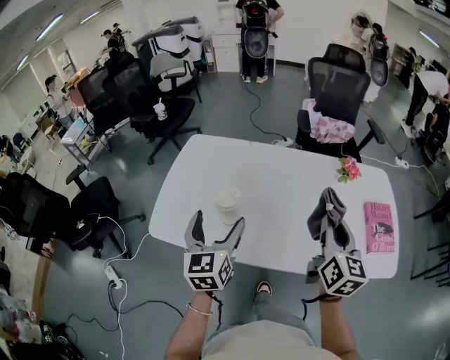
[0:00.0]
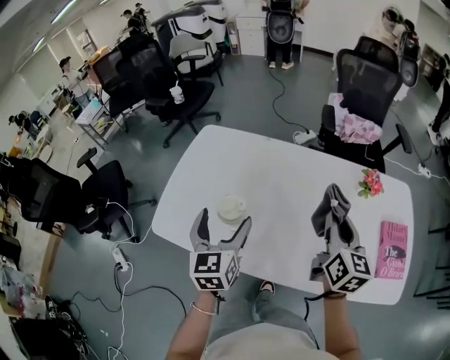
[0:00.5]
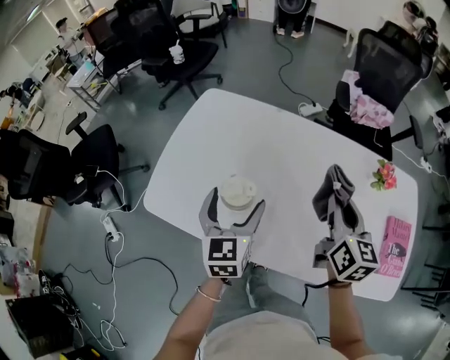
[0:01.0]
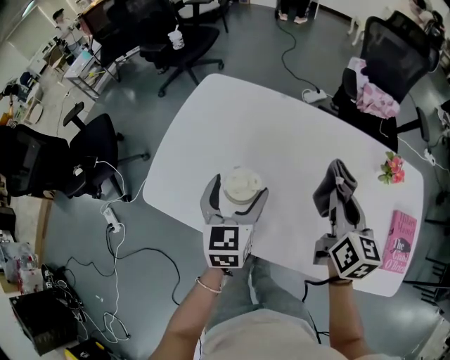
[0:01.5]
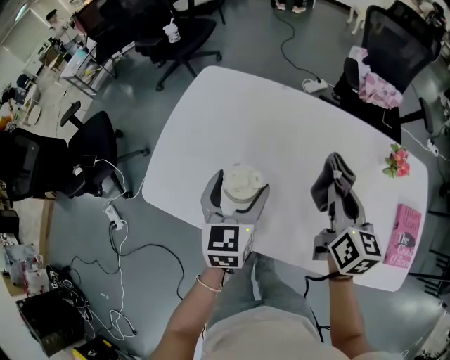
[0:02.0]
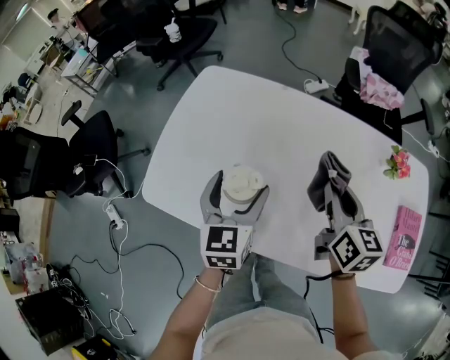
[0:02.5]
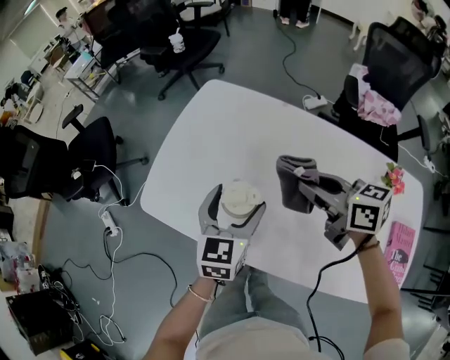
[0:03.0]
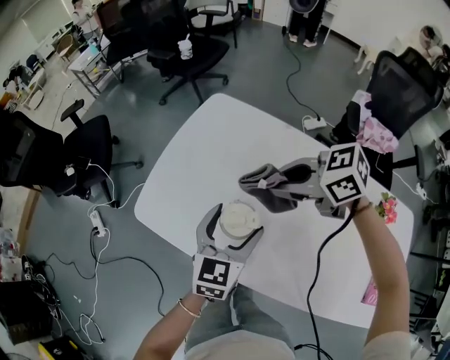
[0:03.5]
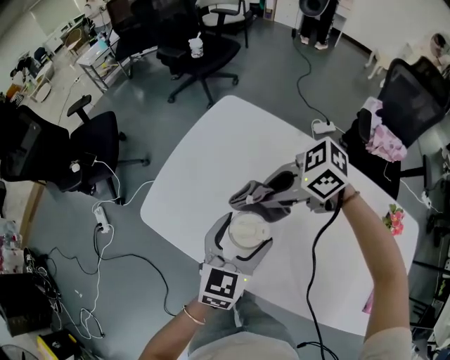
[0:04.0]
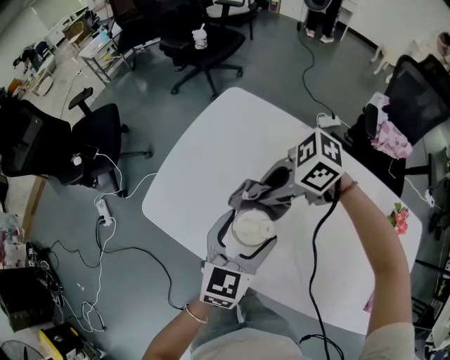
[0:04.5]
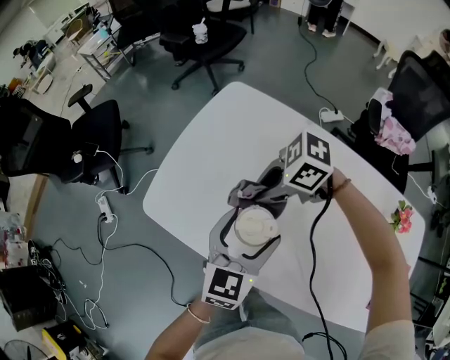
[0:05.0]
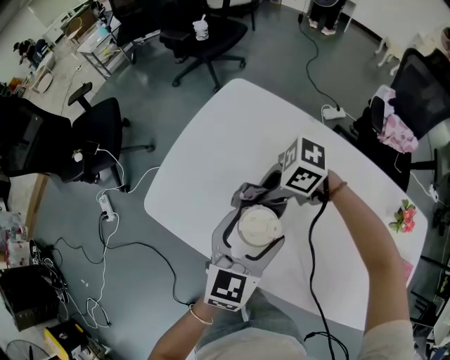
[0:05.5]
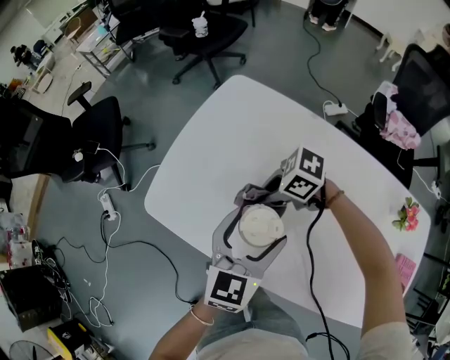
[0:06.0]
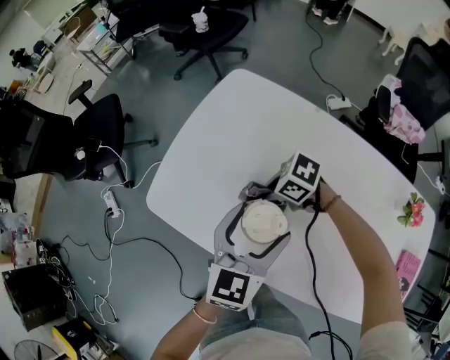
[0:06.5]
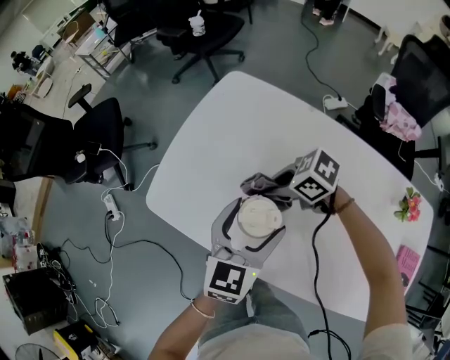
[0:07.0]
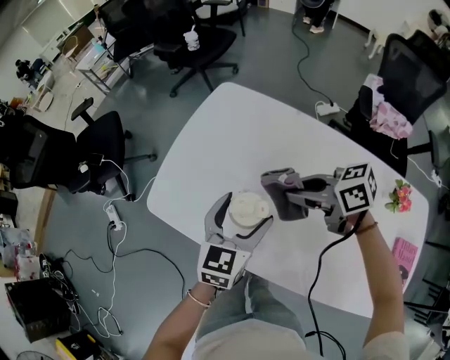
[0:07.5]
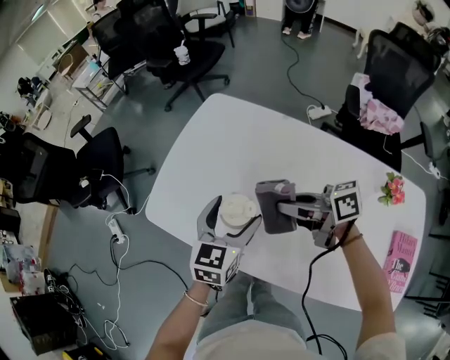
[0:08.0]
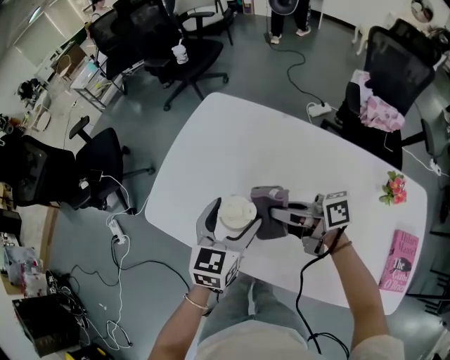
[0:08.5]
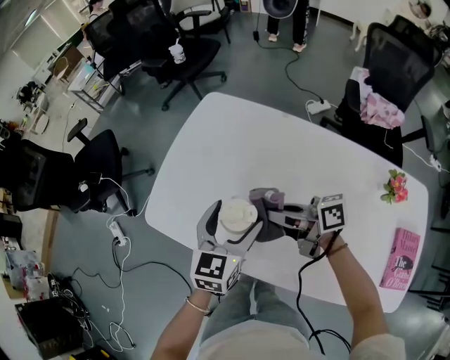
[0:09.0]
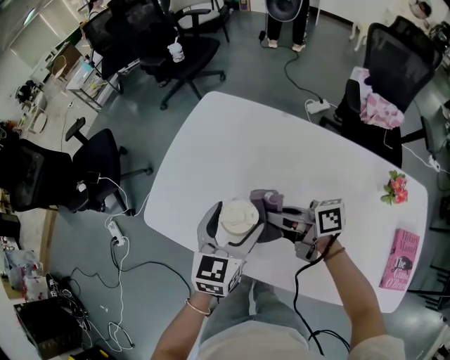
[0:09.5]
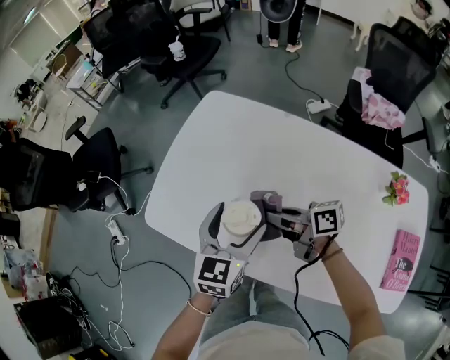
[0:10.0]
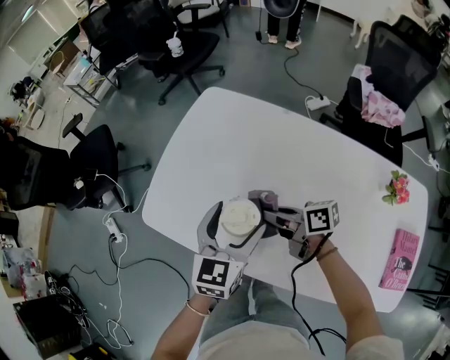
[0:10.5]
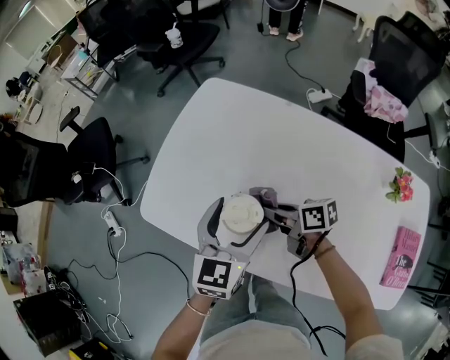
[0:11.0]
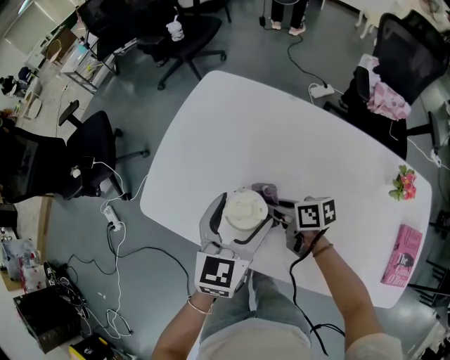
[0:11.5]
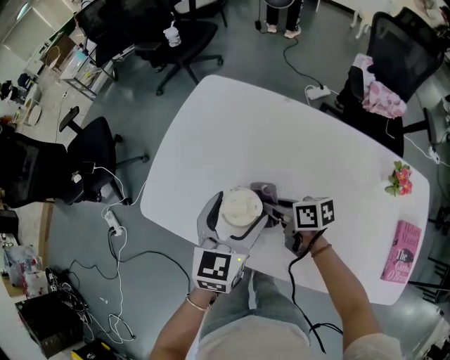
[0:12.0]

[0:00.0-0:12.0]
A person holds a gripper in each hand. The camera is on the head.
0:00.0 to 0:02.0: The left gripper heads forward and downward, covering about 15 cm. The right gripper travels forward, downward and to the left by roughly 20 cm.
0:02.0 to 0:04.0: The right gripper shifts by some 25 cm, and changes its angle by roughly 100 degrees.
0:04.0 to 0:06.0: The right gripper shifts roughly 10 cm downward.
0:06.0 to 0:08.0: The right gripper goes some 10 cm upward, and points its fingers about 40 degrees further upward.
0:08.0 to 0:10.0: The right gripper travels downward by some 5 cm.
0:10.0 to 0:12.0: The right gripper is displaced downward by about 10 cm, and rotates some 20 degrees.

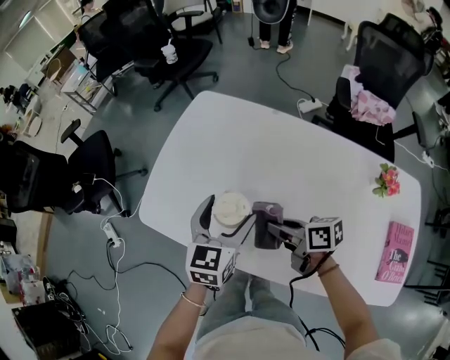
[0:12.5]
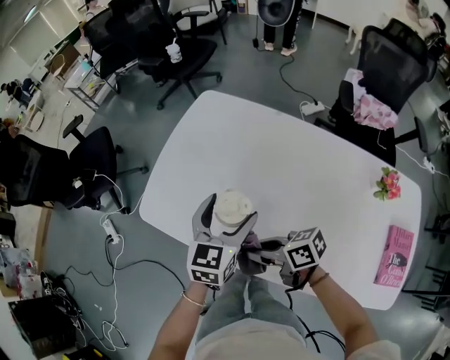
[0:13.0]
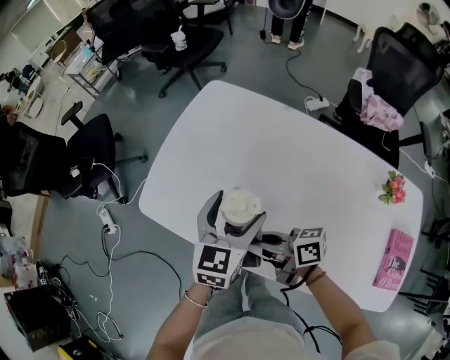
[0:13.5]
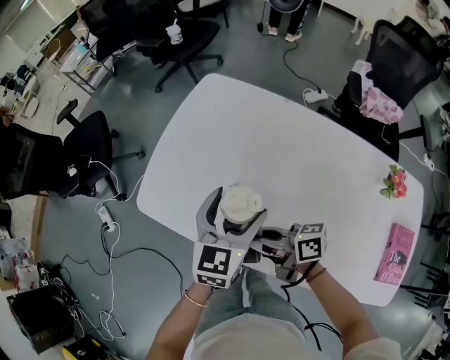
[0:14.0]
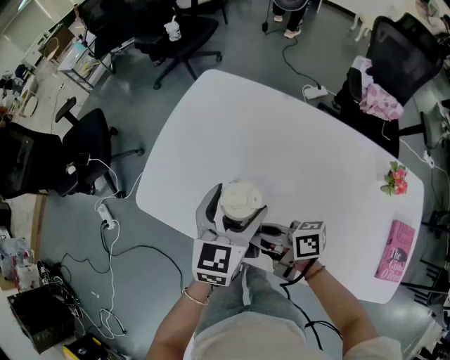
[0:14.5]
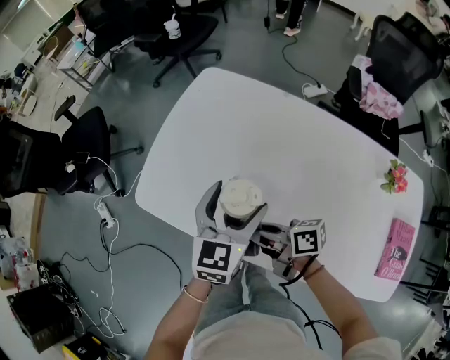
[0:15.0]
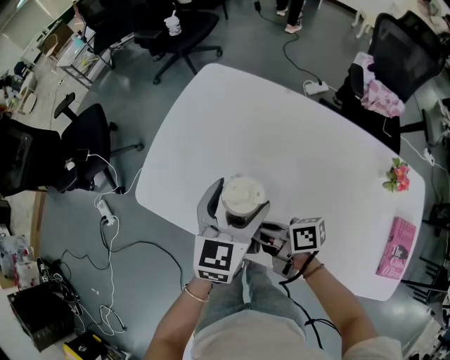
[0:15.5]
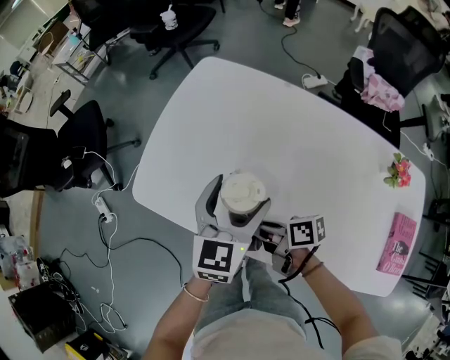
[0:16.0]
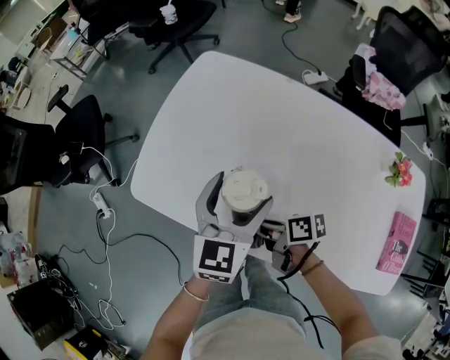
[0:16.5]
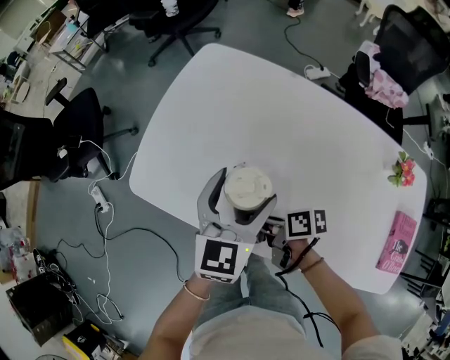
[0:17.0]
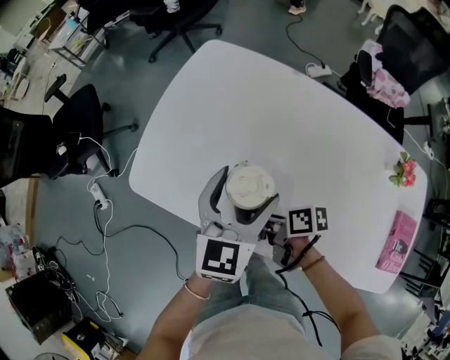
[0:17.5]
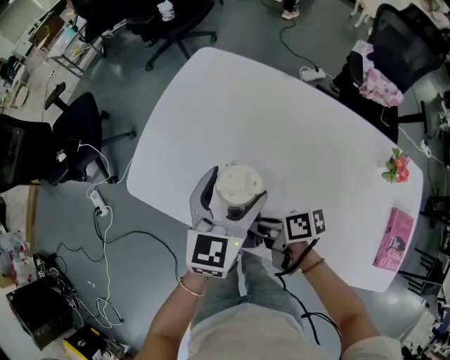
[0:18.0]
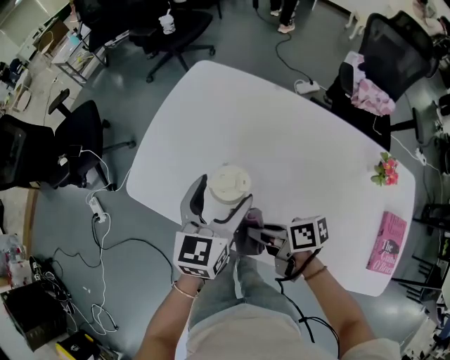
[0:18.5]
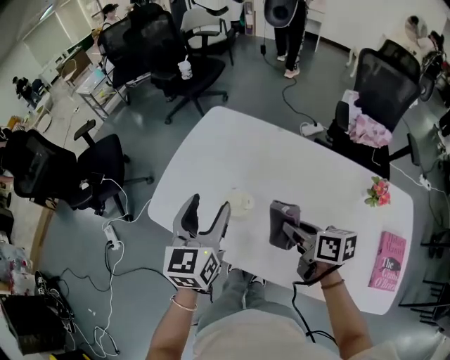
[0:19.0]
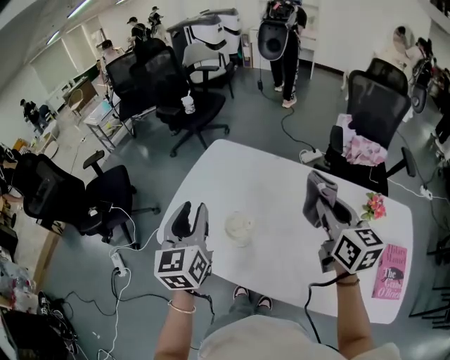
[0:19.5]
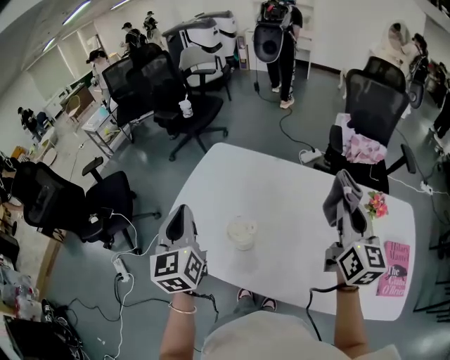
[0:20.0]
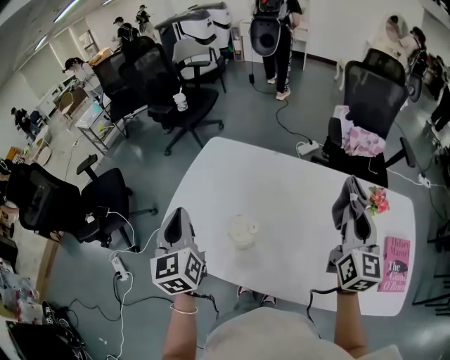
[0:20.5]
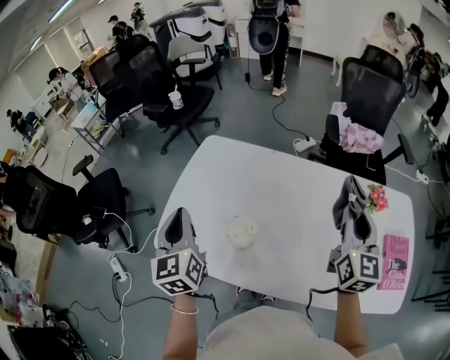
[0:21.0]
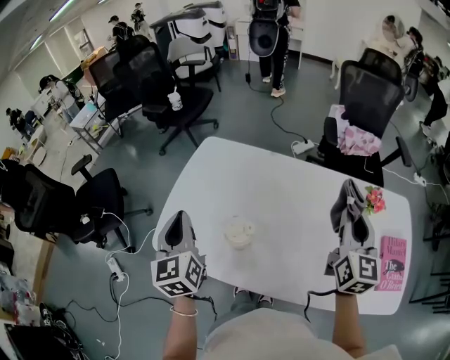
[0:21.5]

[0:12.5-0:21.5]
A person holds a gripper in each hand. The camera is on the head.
0:12.5 to 0:14.5: The right gripper is displaced to the left by roughly 10 cm.
0:14.5 to 0:17.0: The right gripper heads downward, covering roughly 10 cm, and rotates approximately 30 degrees.
0:17.0 to 0:19.5: The right gripper shifts about 35 cm upward and to the right, and turns by some 70 degrees, while the left gripper shifts some 20 cm upward and to the left, rotates about 20 degrees, and closes.
0:19.5 to 0:21.5: The left gripper ends up roughly 5 cm from where it was. Meanwhile the right gripper is displaced to the right by about 5 cm, and rotates roughly 30 degrees.

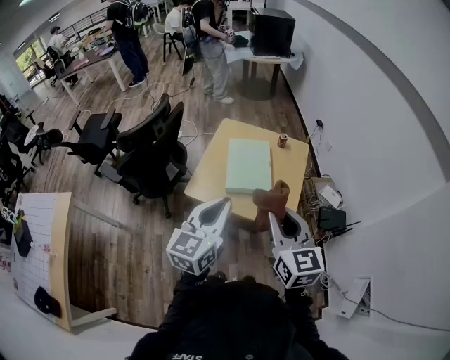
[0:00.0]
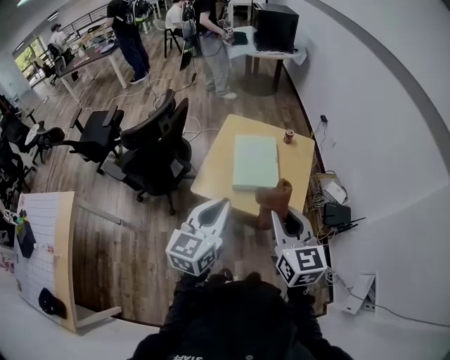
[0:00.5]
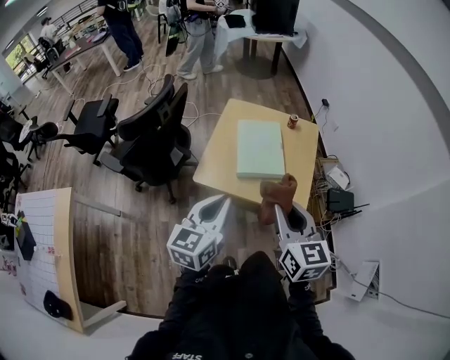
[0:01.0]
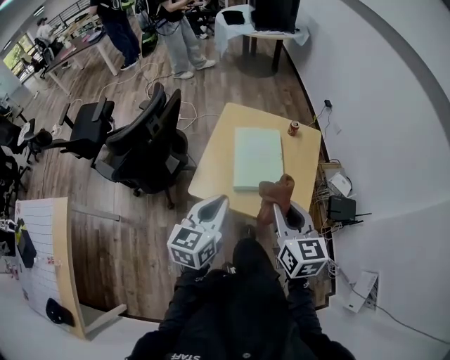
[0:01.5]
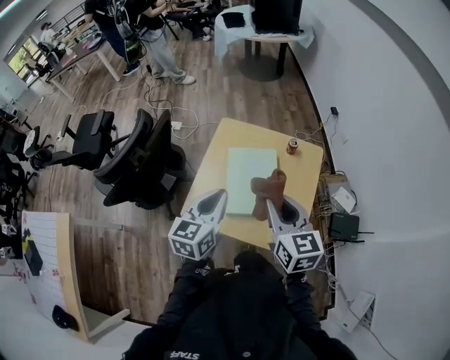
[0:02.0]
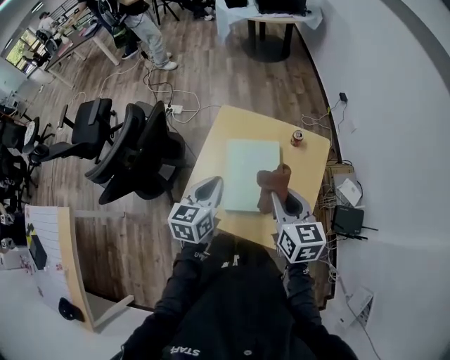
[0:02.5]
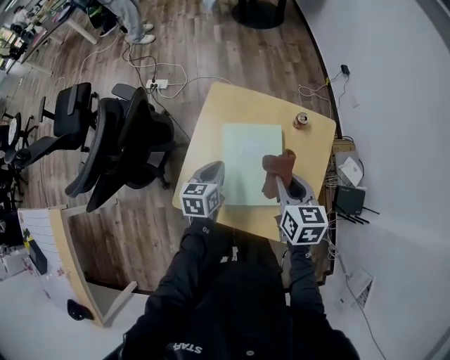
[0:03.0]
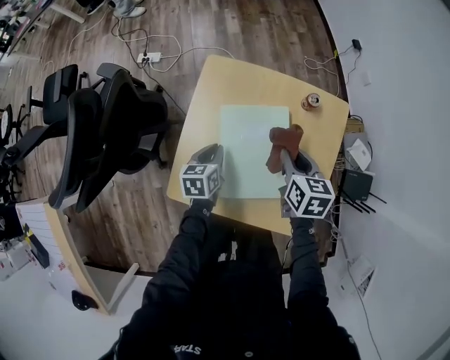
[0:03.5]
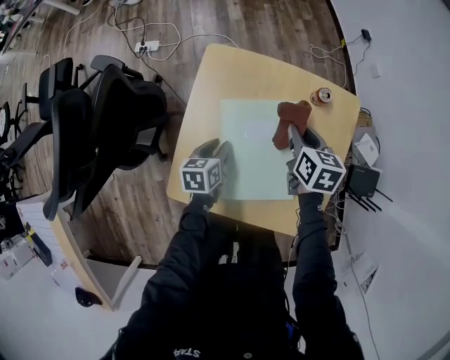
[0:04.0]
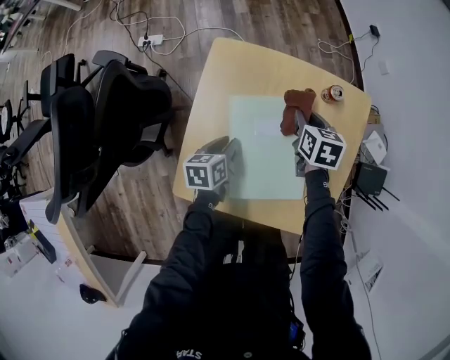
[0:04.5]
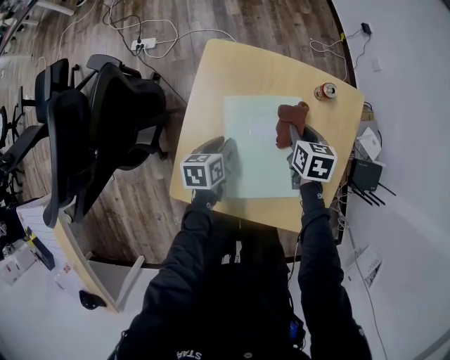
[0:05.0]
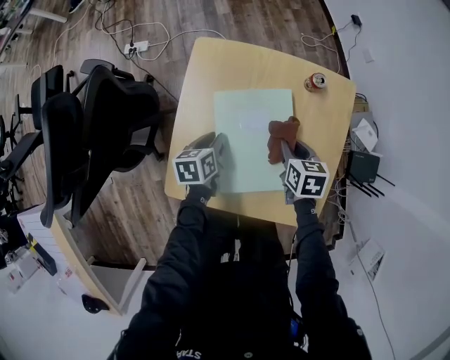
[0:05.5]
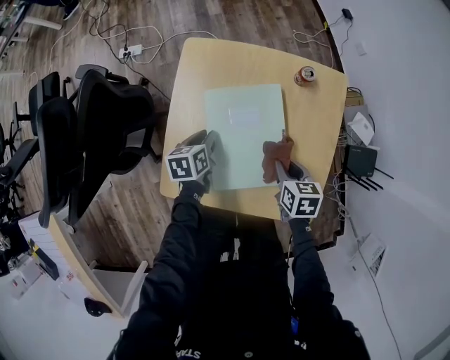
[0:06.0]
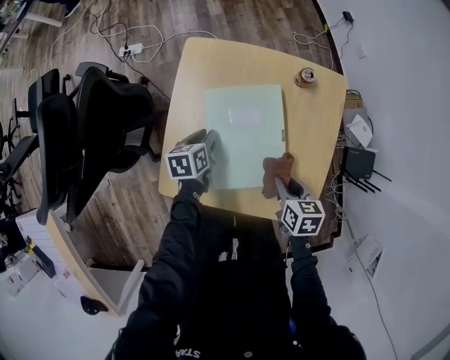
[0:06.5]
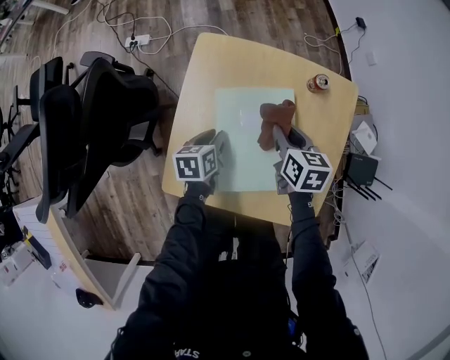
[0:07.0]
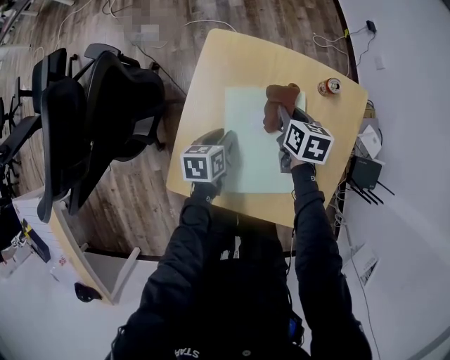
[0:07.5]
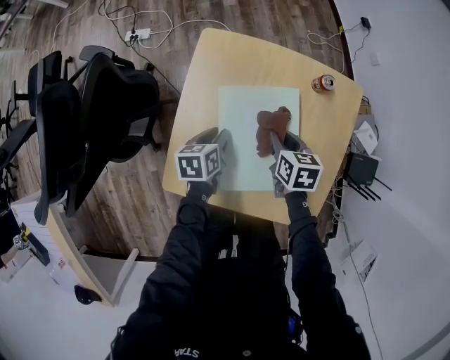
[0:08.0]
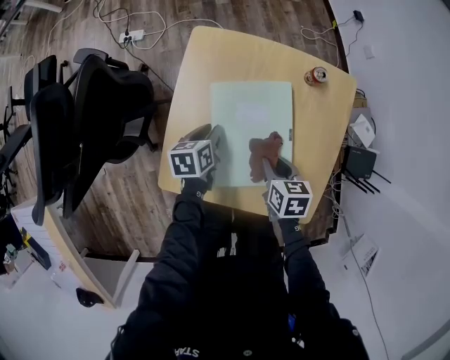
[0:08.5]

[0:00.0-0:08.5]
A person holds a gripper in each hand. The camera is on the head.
0:00.0 to 0:02.0: Both grippers move forward, approximately 25 cm.
0:02.0 to 0:04.0: Both grippers travel together downward and forward, some 40 cm. The right gripper rotates some 30 degrees. The left gripper tips its fingers downward by about 30 degrees.
0:04.0 to 0:06.5: The right gripper shifts about 20 cm backward.
0:06.5 to 0:08.5: The right gripper moves to the left, some 5 cm, and travels forward and back again, about 20 cm each way.
